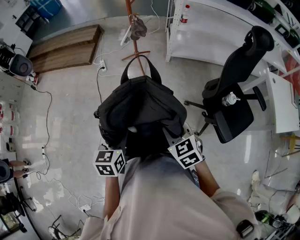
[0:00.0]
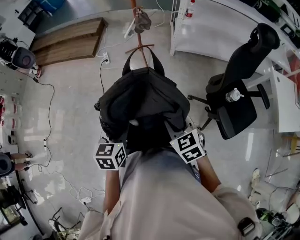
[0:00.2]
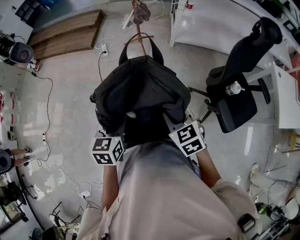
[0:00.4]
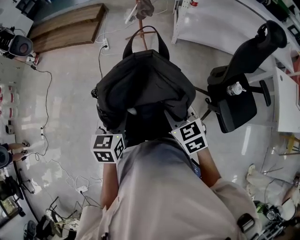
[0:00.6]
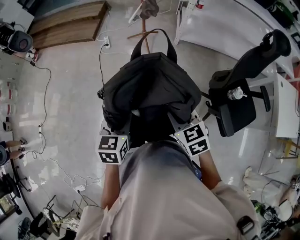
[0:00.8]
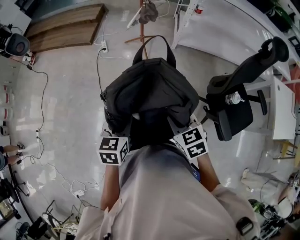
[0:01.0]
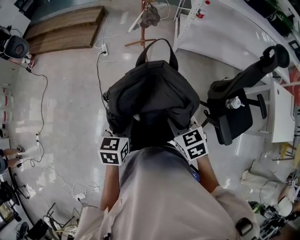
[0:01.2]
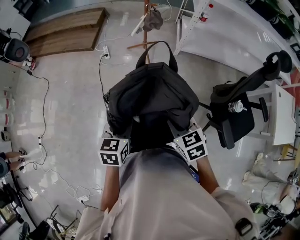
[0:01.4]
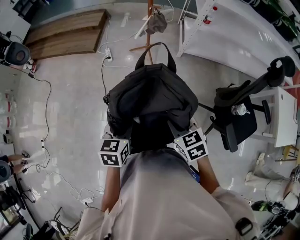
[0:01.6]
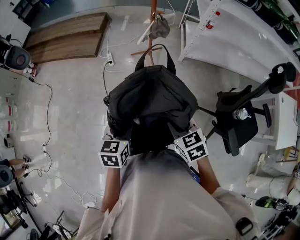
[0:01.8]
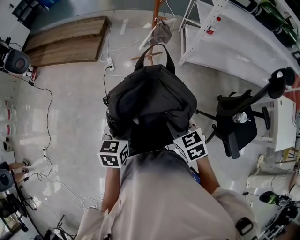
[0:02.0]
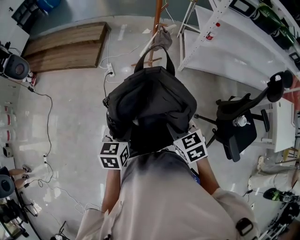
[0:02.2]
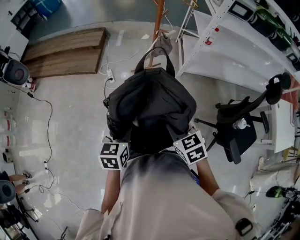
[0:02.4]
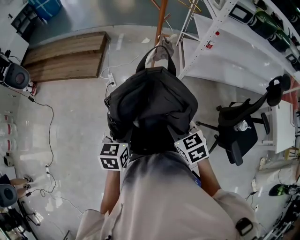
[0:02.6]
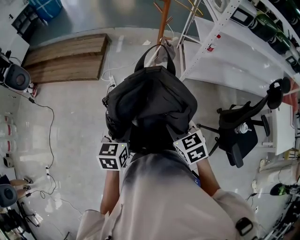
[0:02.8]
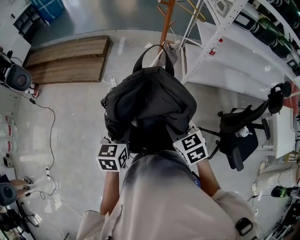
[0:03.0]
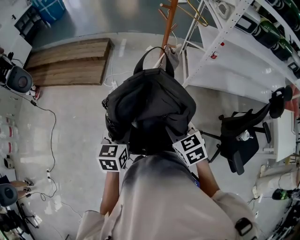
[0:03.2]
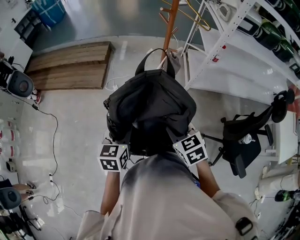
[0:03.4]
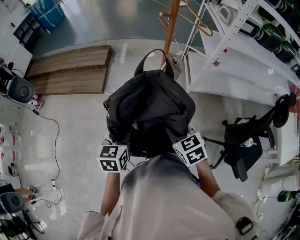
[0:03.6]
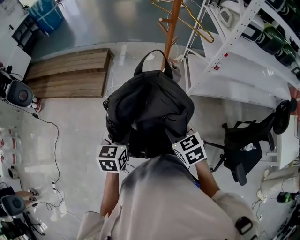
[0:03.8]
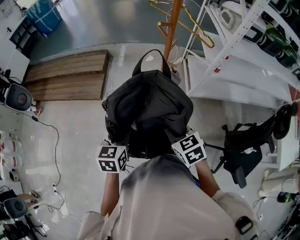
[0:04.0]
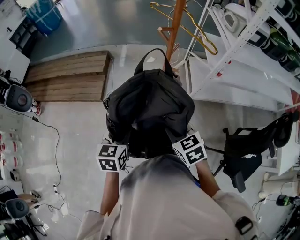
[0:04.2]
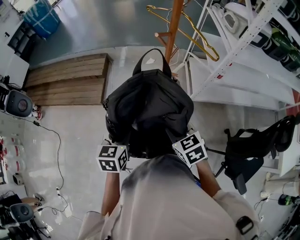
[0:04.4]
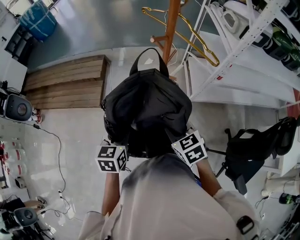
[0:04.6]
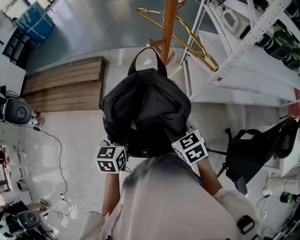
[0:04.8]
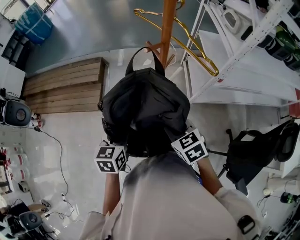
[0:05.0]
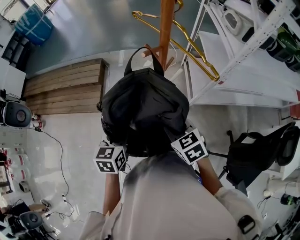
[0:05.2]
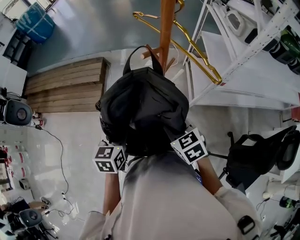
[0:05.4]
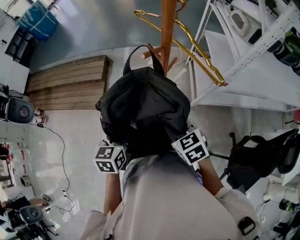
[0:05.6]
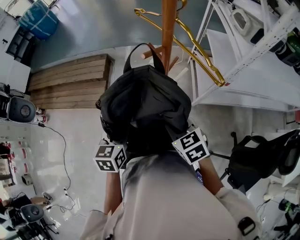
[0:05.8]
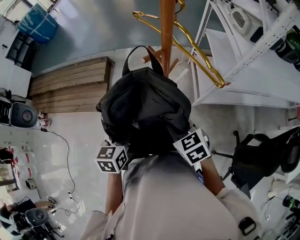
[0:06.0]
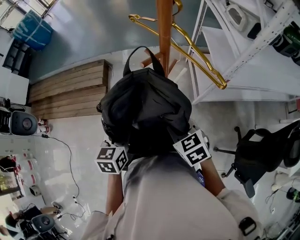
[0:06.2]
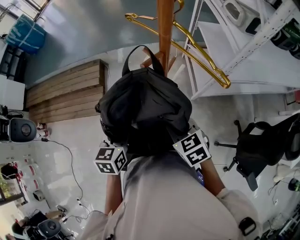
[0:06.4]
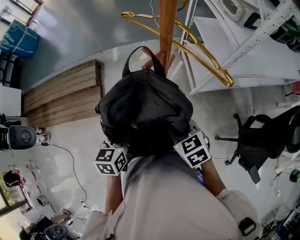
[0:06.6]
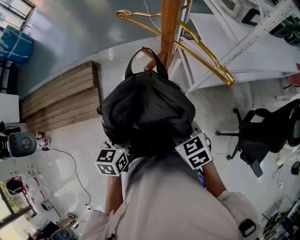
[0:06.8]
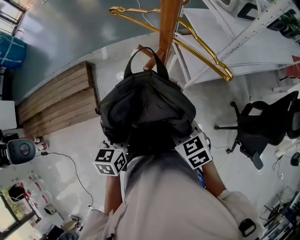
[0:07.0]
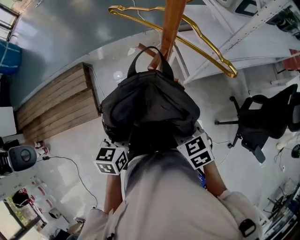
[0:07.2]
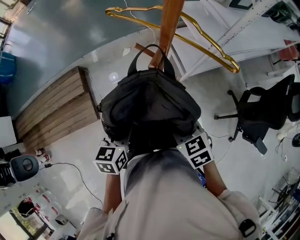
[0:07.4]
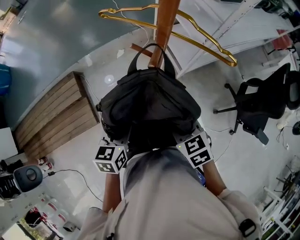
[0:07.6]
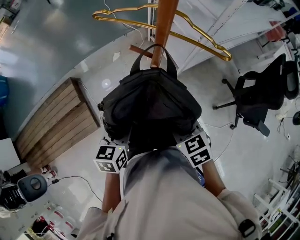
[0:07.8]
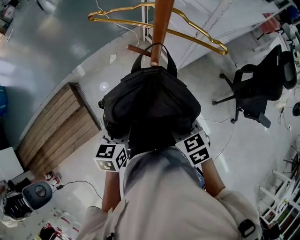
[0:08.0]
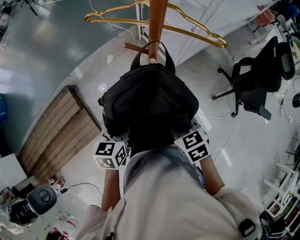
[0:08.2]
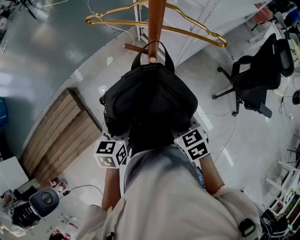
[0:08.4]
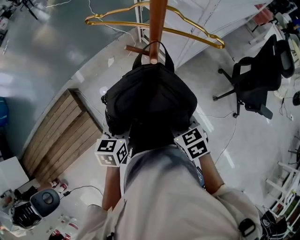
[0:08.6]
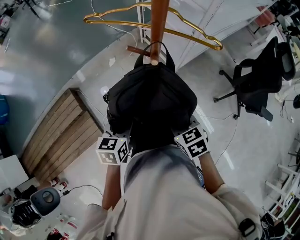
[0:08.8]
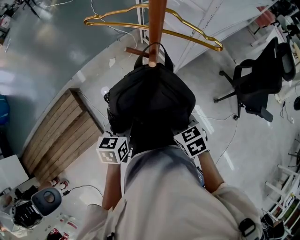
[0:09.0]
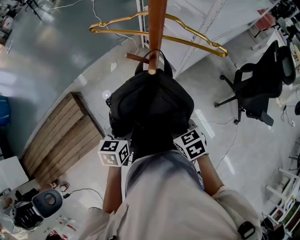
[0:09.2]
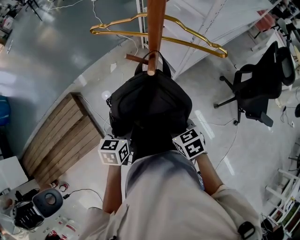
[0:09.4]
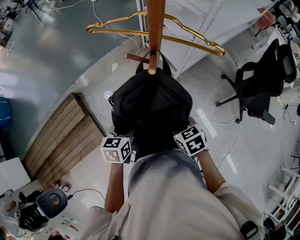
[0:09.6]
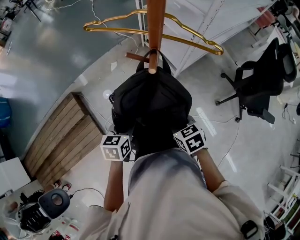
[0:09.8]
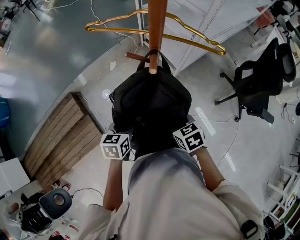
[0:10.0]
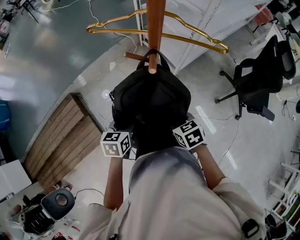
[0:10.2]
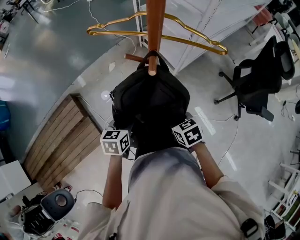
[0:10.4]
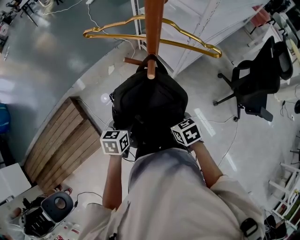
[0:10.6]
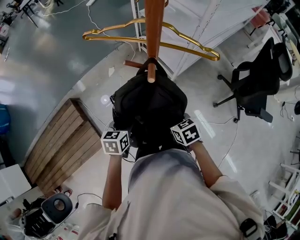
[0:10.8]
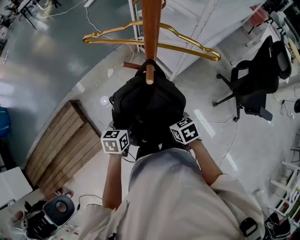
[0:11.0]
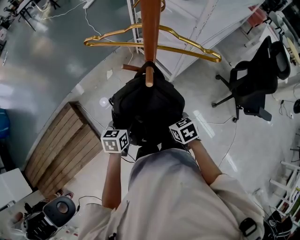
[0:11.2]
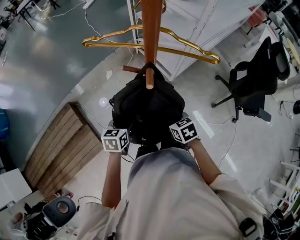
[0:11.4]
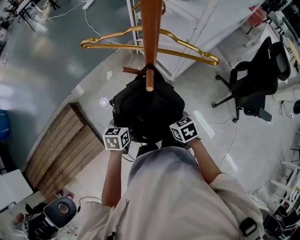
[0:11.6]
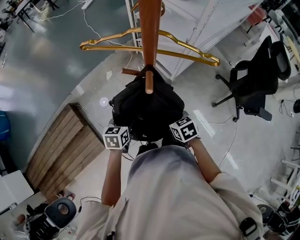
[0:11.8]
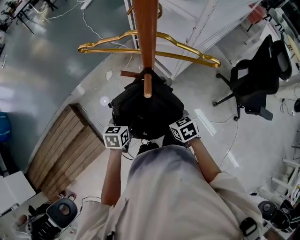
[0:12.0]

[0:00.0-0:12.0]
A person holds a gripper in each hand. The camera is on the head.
0:00.0 to 0:01.6: The right gripper shifts approximately 15 cm forward and to the left. The left gripper shifts about 15 cm forward.
0:01.6 to 0:03.0: The two grippers go approximately 20 cm forward and to the left.
0:03.0 to 0:04.4: The grippers both shift forward by some 25 cm.
0:04.4 to 0:06.0: The grippers both shift forward by some 15 cm.
0:06.0 to 0:07.6: The left gripper moves about 10 cm, and changes its angle by some 30 degrees, while the right gripper changes place by approximately 5 cm, and rotates roughly 30 degrees.
0:07.6 to 0:09.0: The grippers make only small movements.
0:09.0 to 0:10.4: The right gripper changes place by approximately 5 cm; the left gripper shifts by some 5 cm.
0:10.4 to 0:12.0: The grippers both shift forward by roughly 5 cm.

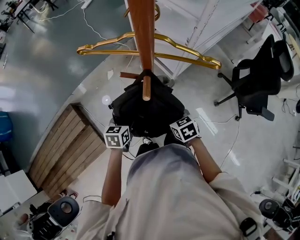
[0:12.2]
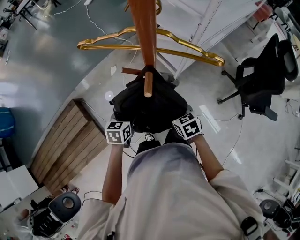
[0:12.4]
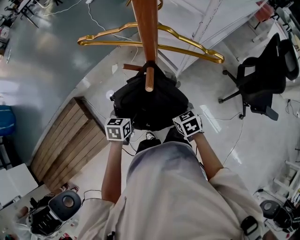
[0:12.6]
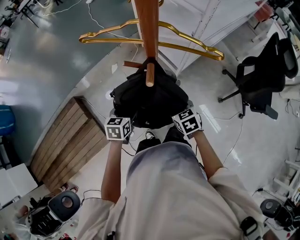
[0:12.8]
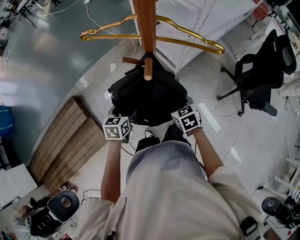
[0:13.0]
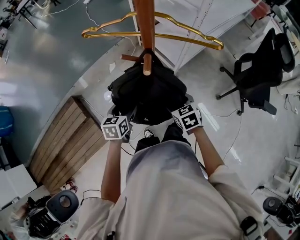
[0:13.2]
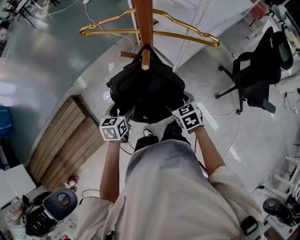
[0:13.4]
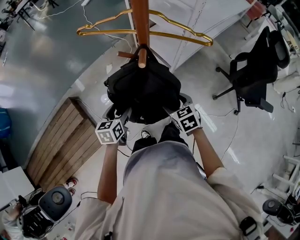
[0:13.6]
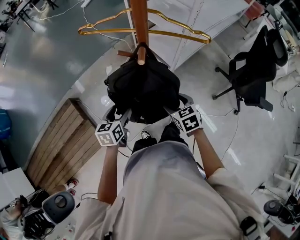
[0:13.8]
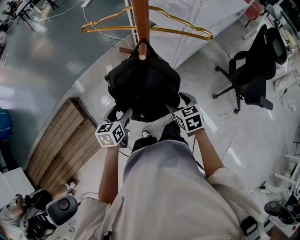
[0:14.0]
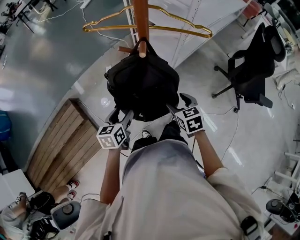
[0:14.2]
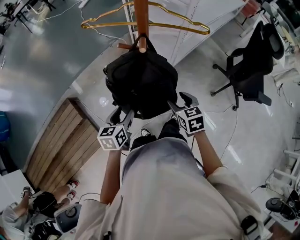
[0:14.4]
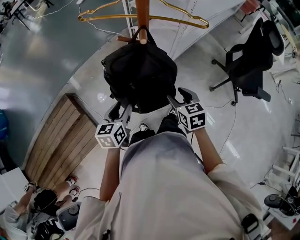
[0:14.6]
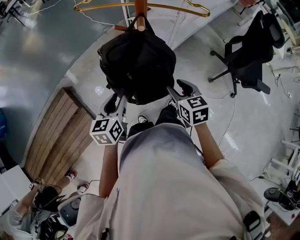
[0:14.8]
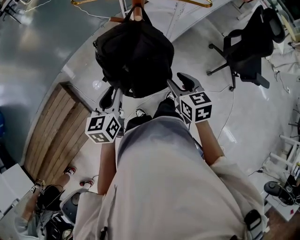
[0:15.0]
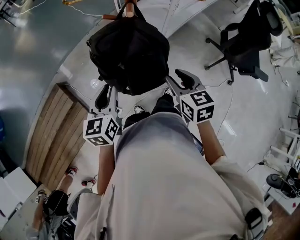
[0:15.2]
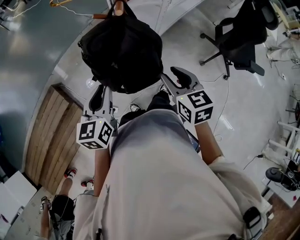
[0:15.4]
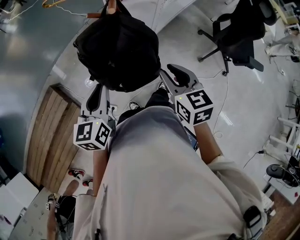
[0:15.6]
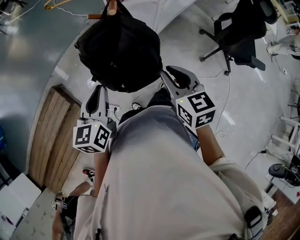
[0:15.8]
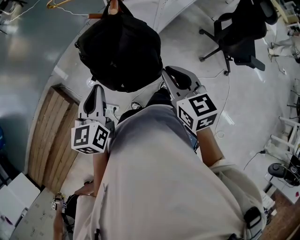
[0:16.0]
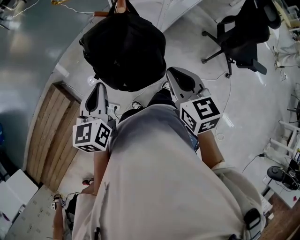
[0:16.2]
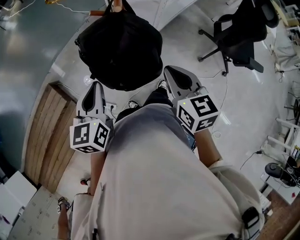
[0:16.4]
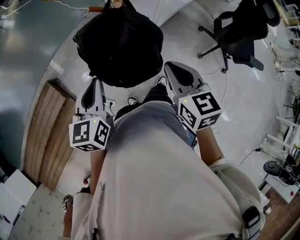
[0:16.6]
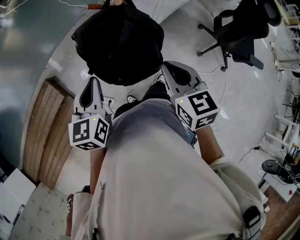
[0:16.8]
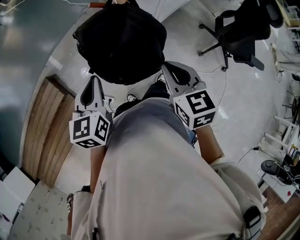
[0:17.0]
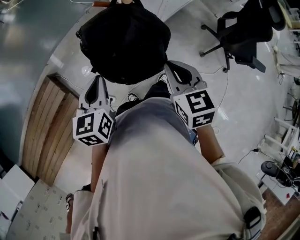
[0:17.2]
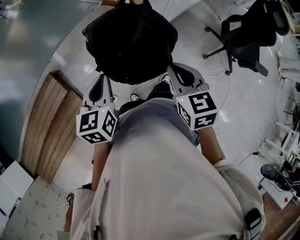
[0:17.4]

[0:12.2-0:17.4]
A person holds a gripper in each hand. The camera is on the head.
0:12.2 to 0:14.0: The right gripper ends up some 5 cm from where it was, and opens its fingers, while the left gripper heads backward, covering roughly 5 cm.
0:14.0 to 0:15.6: The left gripper goes approximately 10 cm upward, and closes its fingers. Meanwhile the right gripper is displaced upward and backward by approximately 10 cm, and closes its fingers.
0:15.6 to 0:17.4: The grippers stay close to where they were, moving slightly.

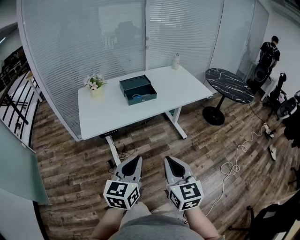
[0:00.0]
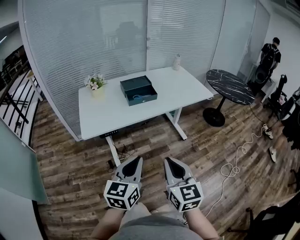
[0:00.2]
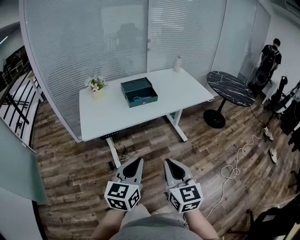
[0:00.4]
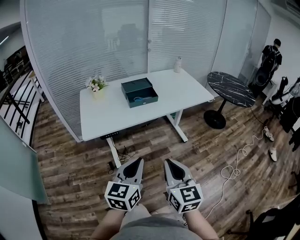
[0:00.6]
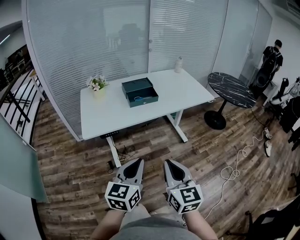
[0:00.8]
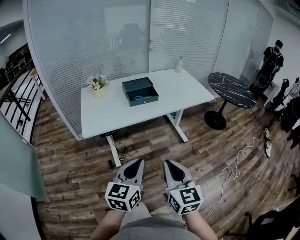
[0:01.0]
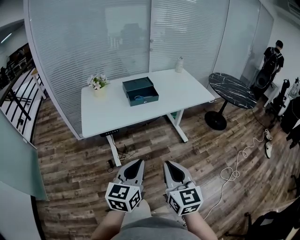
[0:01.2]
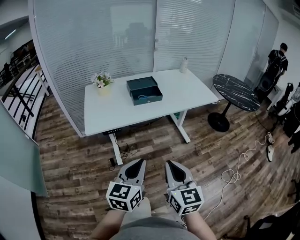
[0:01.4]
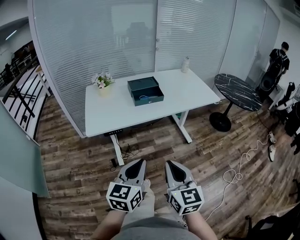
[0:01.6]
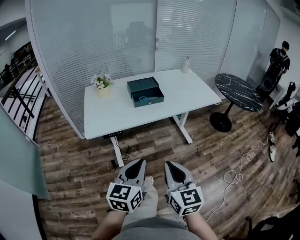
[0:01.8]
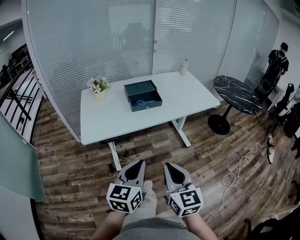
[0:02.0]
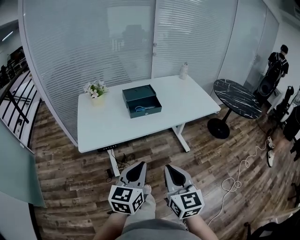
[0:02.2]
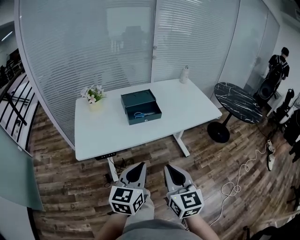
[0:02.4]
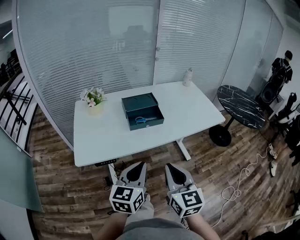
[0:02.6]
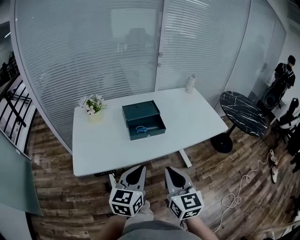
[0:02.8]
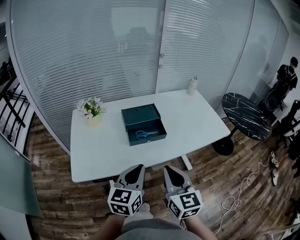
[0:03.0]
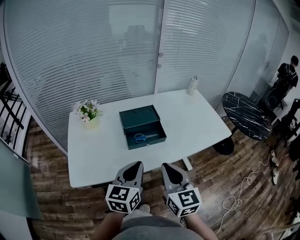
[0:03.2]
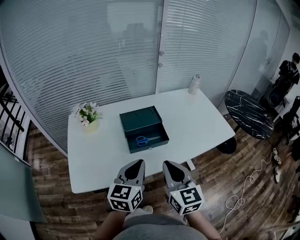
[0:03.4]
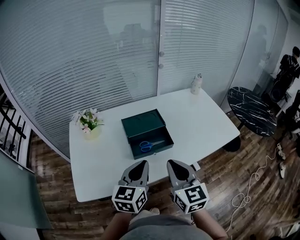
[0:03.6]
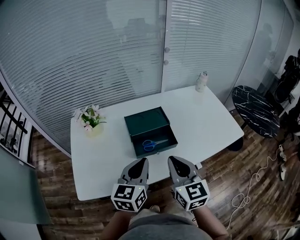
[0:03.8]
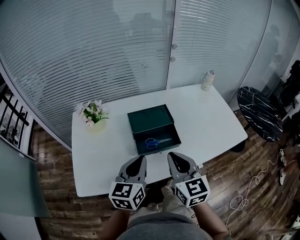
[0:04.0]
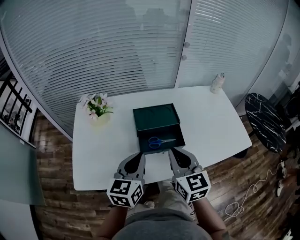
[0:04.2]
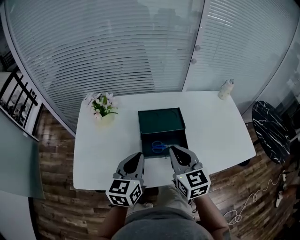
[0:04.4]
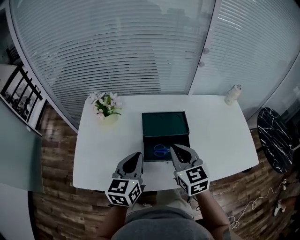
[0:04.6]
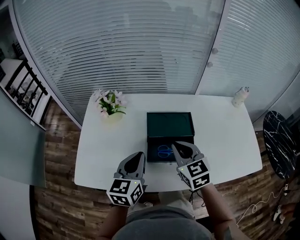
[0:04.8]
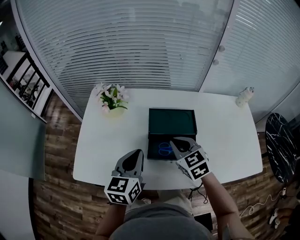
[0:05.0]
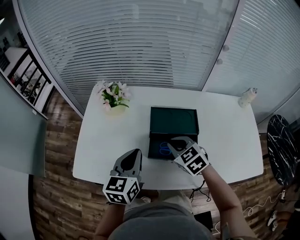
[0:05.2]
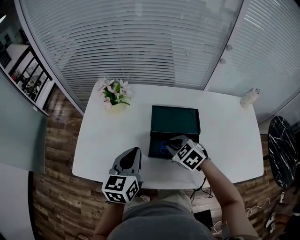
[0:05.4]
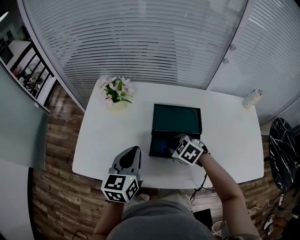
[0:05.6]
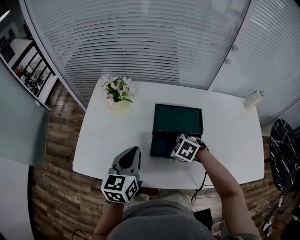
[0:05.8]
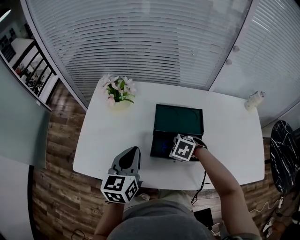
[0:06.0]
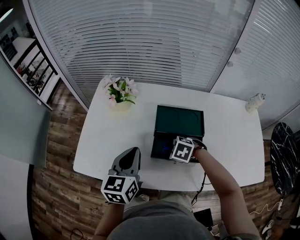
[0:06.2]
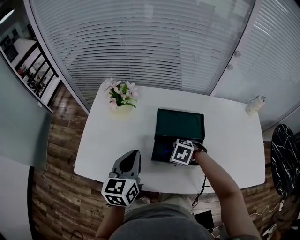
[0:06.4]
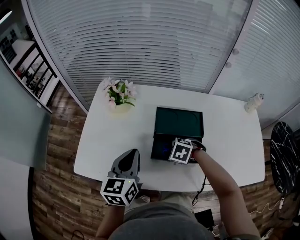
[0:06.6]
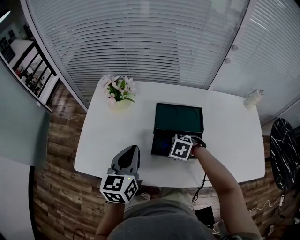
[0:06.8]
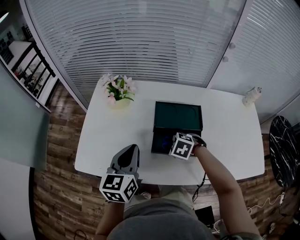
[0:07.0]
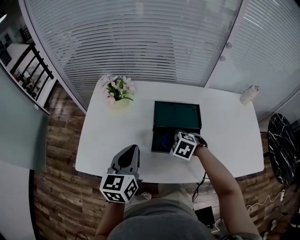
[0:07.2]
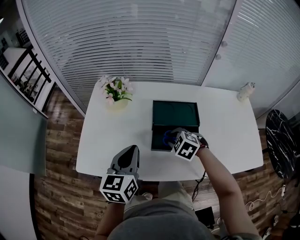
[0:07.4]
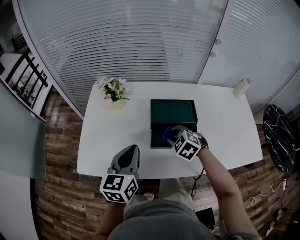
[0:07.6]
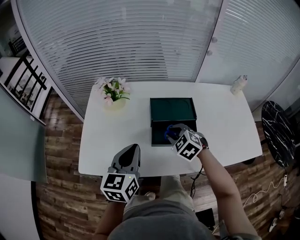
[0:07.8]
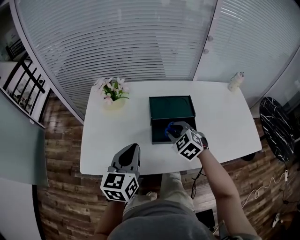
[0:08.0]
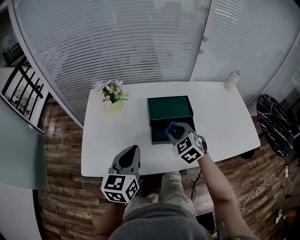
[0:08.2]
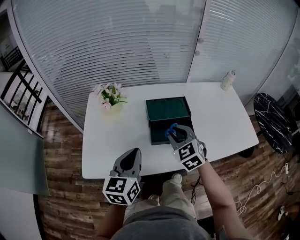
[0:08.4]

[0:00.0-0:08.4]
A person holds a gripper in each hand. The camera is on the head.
0:00.0 to 0:01.4: The grippers move only a little.
0:01.4 to 0:02.8: The grippers both shift forward by some 30 cm.
0:02.8 to 0:04.2: Both grippers move forward, about 25 cm.
0:04.2 to 0:05.6: The right gripper heads downward, covering approximately 20 cm, tips its fingers downward by roughly 50 degrees, and opens up. Meanwhile the left gripper ends up some 10 cm from where it was.
0:05.6 to 0:07.0: The grippers make only small movements.
0:07.0 to 0:08.4: The right gripper shifts roughly 15 cm upward, and points its fingers some 40 degrees further upward, while the left gripper shifts by approximately 10 cm.
